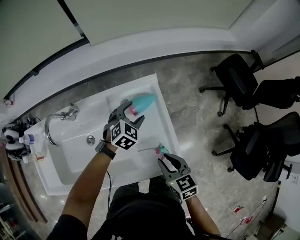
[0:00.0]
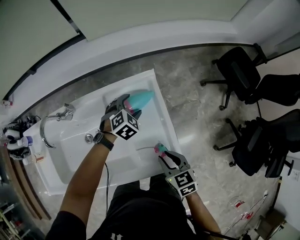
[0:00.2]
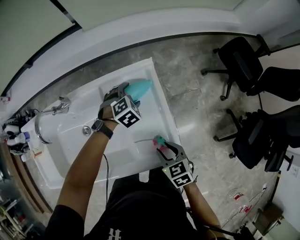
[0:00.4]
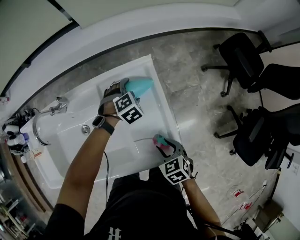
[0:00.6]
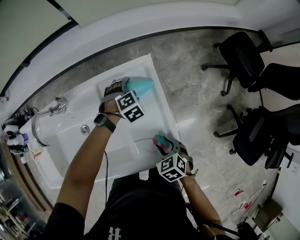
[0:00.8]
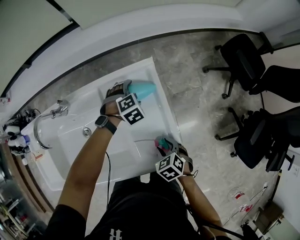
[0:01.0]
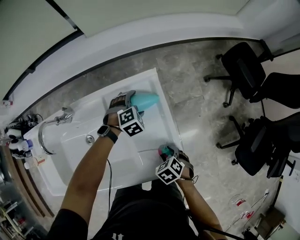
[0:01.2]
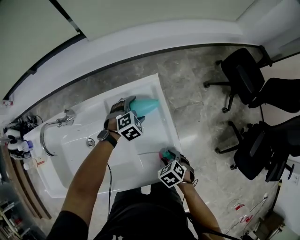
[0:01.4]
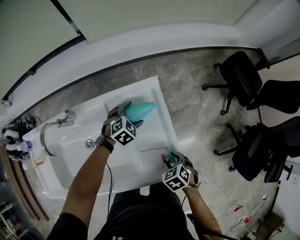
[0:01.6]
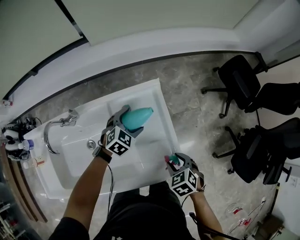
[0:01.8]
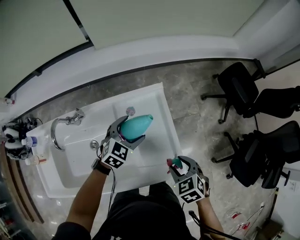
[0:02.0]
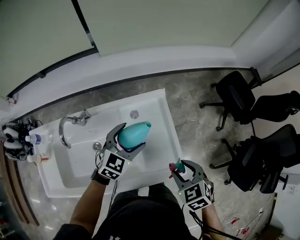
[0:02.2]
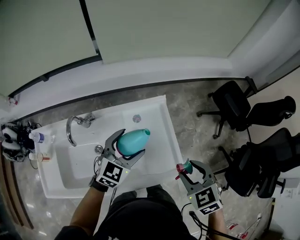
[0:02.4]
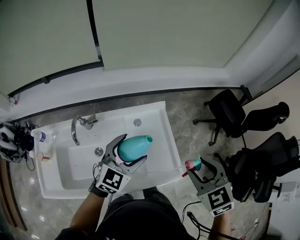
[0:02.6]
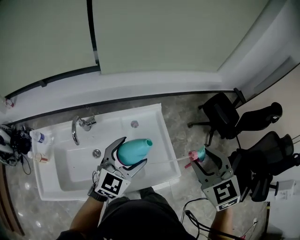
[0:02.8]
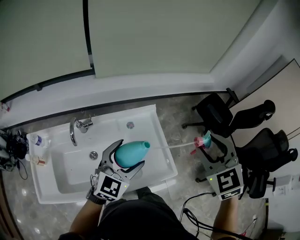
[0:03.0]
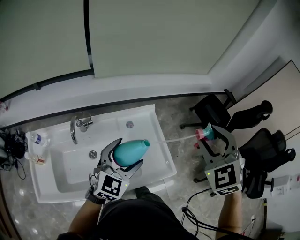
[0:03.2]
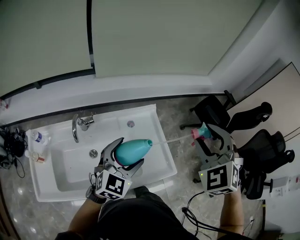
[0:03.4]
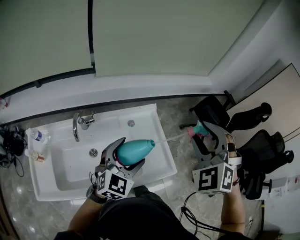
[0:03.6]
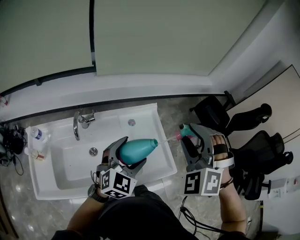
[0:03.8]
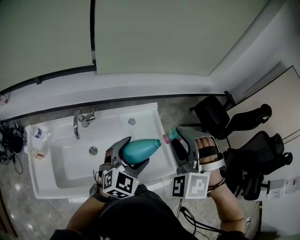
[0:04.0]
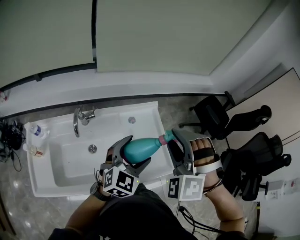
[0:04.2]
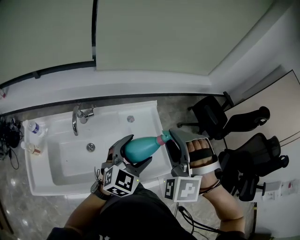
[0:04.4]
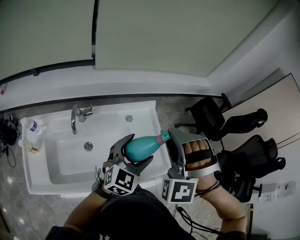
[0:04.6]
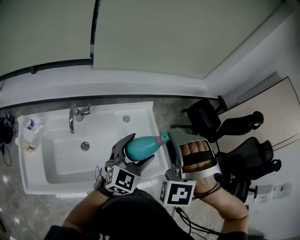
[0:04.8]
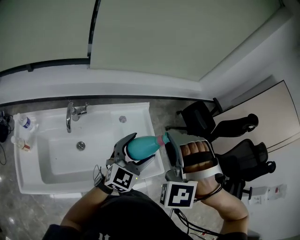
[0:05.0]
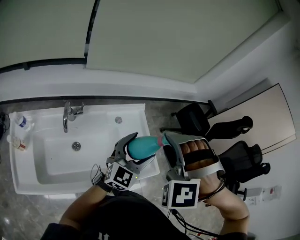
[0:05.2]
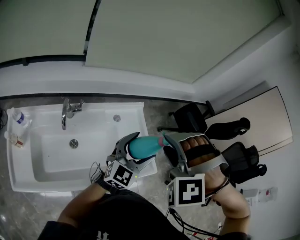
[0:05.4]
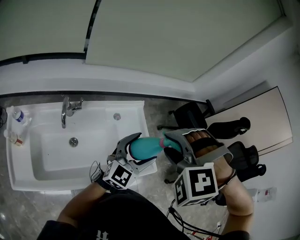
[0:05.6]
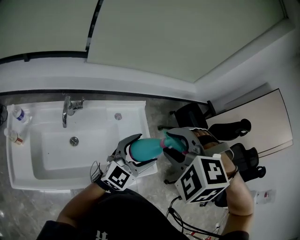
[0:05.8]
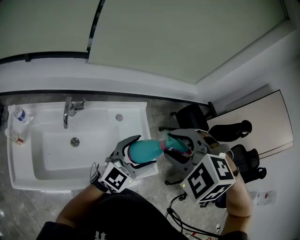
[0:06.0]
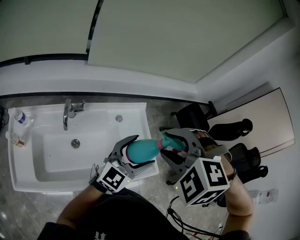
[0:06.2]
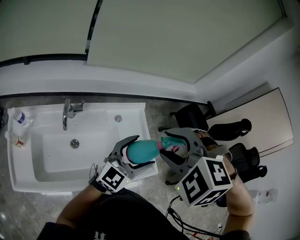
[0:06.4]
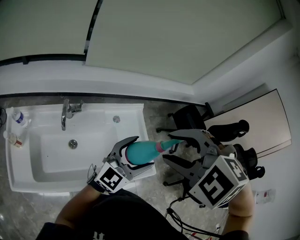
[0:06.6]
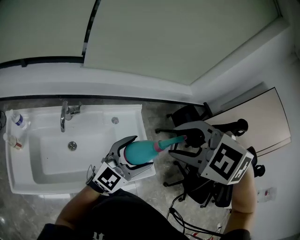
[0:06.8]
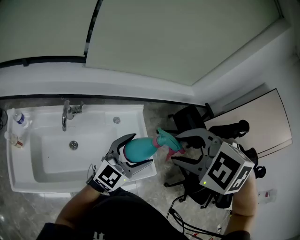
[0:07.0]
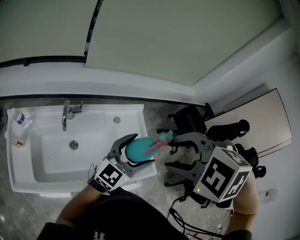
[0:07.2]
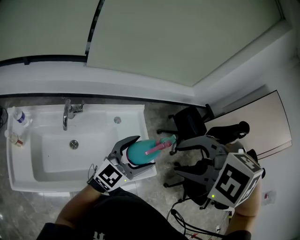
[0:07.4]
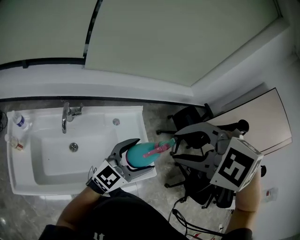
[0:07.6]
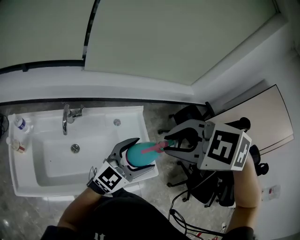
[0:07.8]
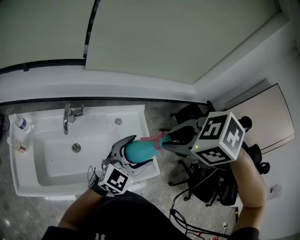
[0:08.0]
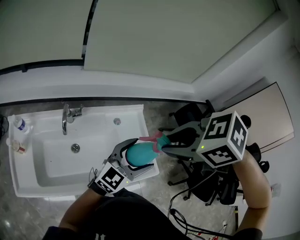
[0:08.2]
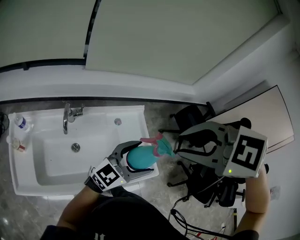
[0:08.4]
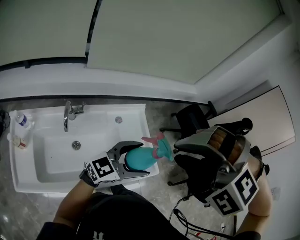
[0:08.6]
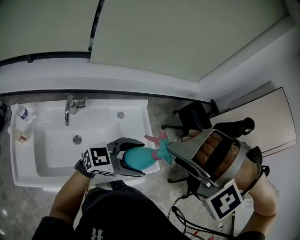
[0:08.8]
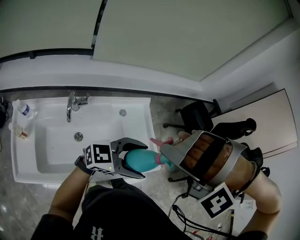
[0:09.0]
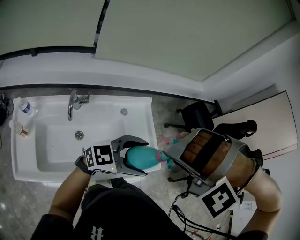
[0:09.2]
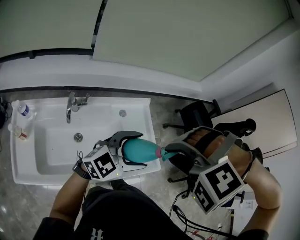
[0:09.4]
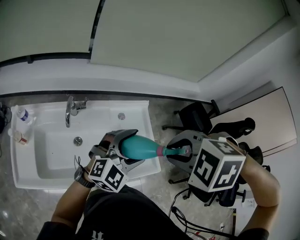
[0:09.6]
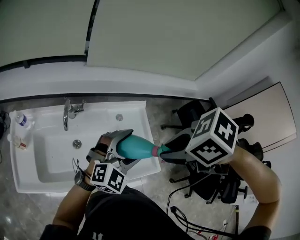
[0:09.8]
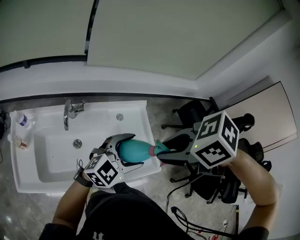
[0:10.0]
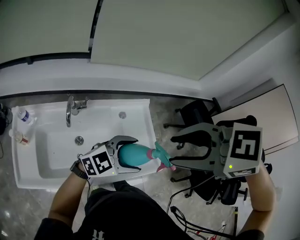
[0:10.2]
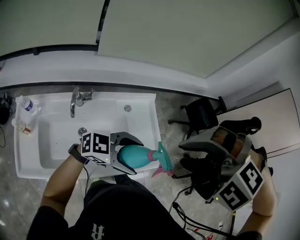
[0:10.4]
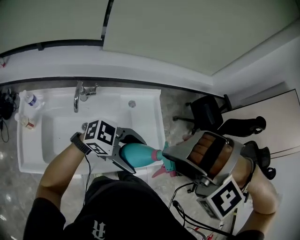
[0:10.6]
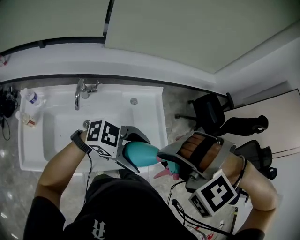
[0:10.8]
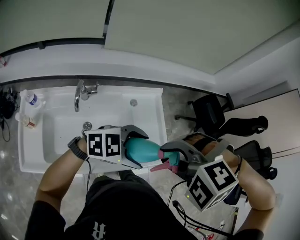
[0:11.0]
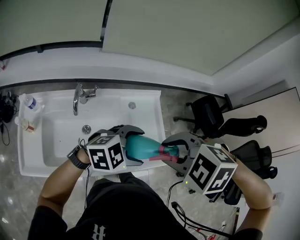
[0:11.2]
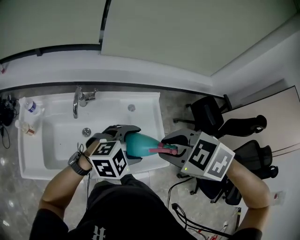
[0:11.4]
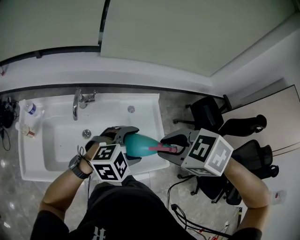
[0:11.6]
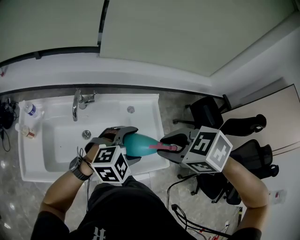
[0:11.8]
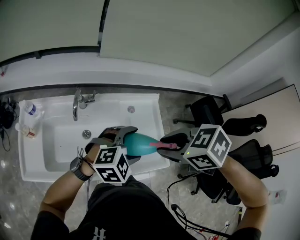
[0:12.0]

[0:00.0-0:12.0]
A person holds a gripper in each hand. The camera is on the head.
0:00.0 to 0:01.6: The two grippers go approximately 10 cm downward. The right gripper angles its fingers downward, by about 30 degrees, and opens.
0:01.6 to 0:03.0: The left gripper heads upward and backward, covering about 40 cm, and tilts its fingers approximately 40 degrees upward. Meanwhile the right gripper is displaced upward by roughly 50 cm, and tips its fingers upward by some 40 degrees.
0:03.0 to 0:04.4: The right gripper travels to the left by approximately 15 cm, and twists roughly 50 degrees counterclockwise, seen from behind.
0:04.4 to 0:06.0: The right gripper shifts by approximately 5 cm, and tips its fingers downward by some 30 degrees; the left gripper turns by some 30 degrees.
0:06.0 to 0:07.6: The right gripper shifts roughly 5 cm upward.
0:07.6 to 0:09.0: The left gripper ends up some 5 cm from where it was, and changes its angle by roughly 40 degrees. The right gripper goes up and down, about 5 cm each way, reversing 2 times, rotates around the line of its fingers by roughly 60 degrees, counterclockwise from behind, and closes, then reopens.
0:09.0 to 0:10.4: The right gripper swivels roughly 40 degrees.
0:10.4 to 0:12.0: The left gripper moves about 10 cm, and rotates approximately 50 degrees. Meanwhile the right gripper travels downward by approximately 10 cm, and rotates around the line of its fingers by approximately 60 degrees, clockwise from behind.

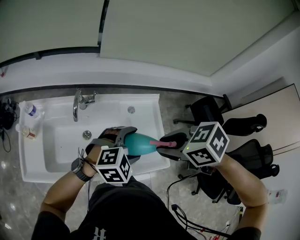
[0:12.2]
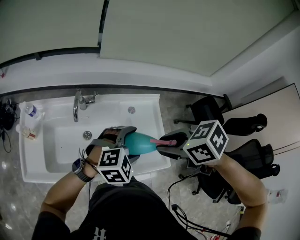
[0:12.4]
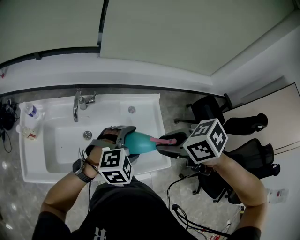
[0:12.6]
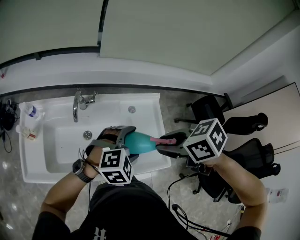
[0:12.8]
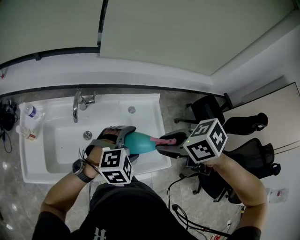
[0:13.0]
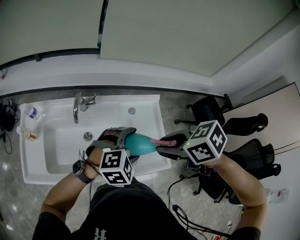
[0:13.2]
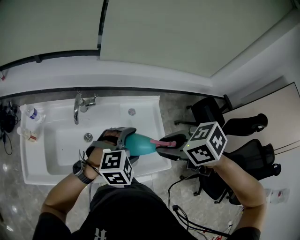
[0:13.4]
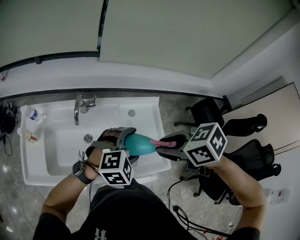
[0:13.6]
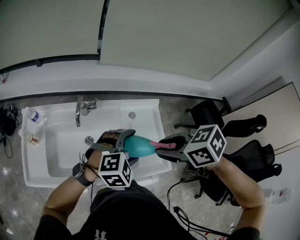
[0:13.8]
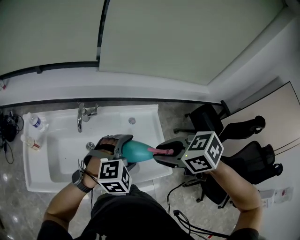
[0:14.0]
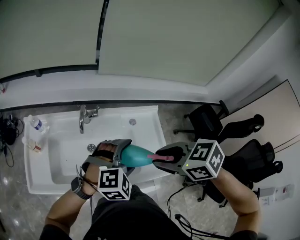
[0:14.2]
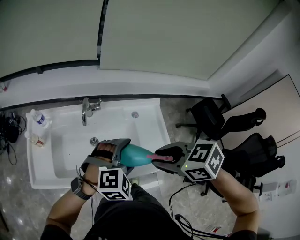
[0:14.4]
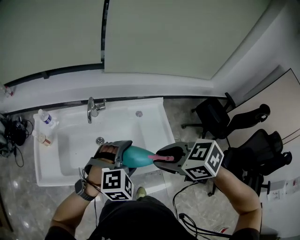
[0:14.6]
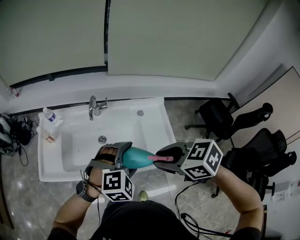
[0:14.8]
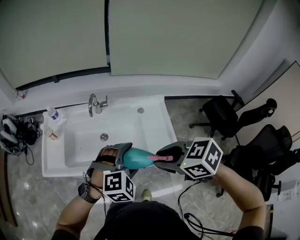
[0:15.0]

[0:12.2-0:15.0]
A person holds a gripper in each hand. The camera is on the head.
0:12.2 to 0:13.6: The grippers move only a little.
0:13.6 to 0:15.0: The left gripper shifts by about 15 cm; the right gripper shifts by approximately 20 cm.

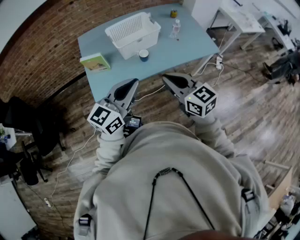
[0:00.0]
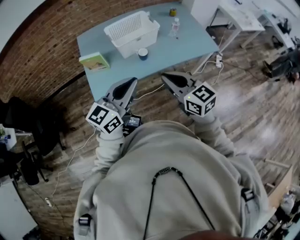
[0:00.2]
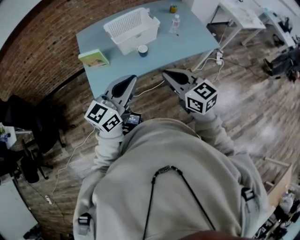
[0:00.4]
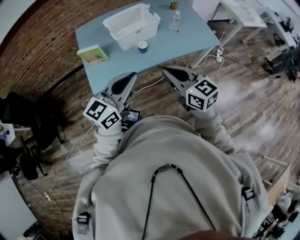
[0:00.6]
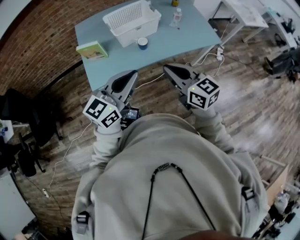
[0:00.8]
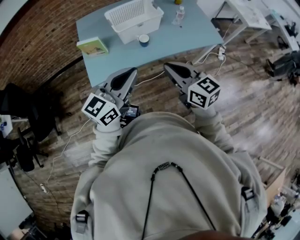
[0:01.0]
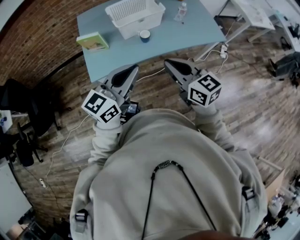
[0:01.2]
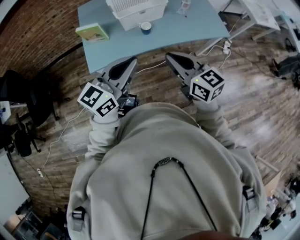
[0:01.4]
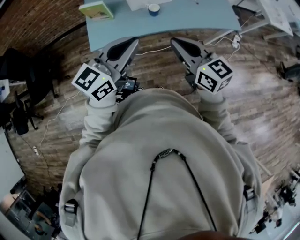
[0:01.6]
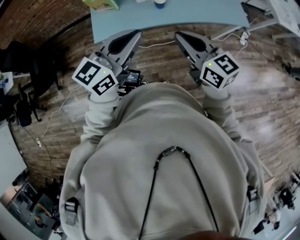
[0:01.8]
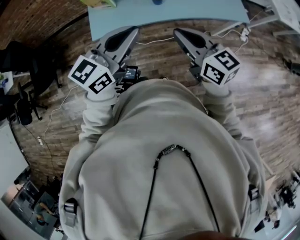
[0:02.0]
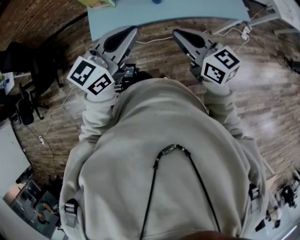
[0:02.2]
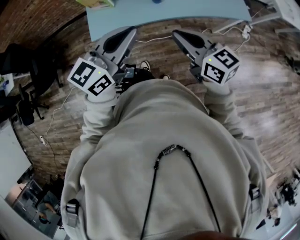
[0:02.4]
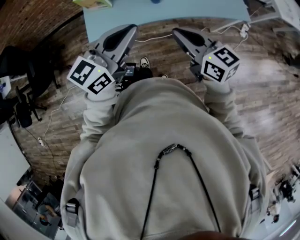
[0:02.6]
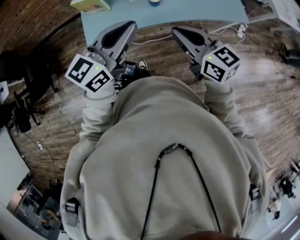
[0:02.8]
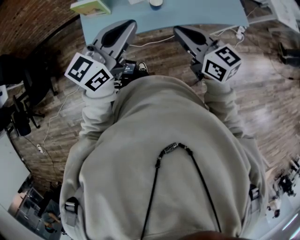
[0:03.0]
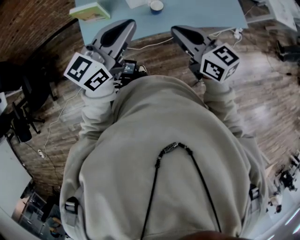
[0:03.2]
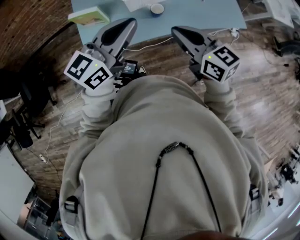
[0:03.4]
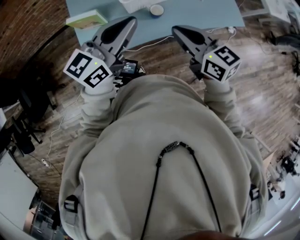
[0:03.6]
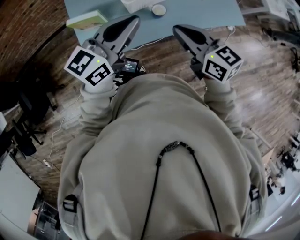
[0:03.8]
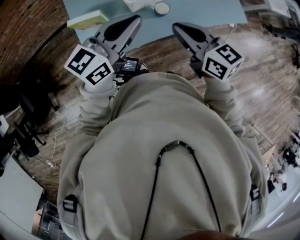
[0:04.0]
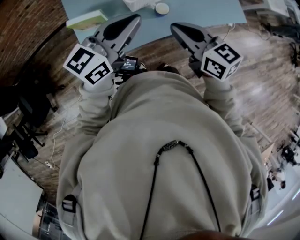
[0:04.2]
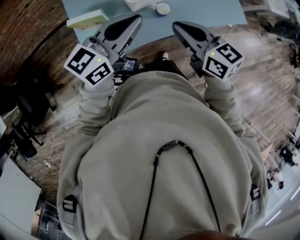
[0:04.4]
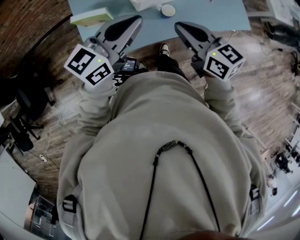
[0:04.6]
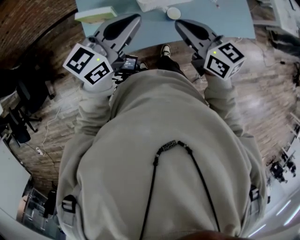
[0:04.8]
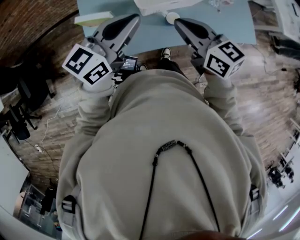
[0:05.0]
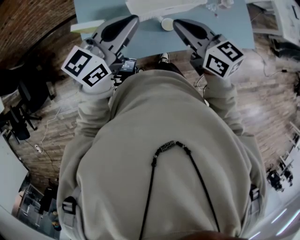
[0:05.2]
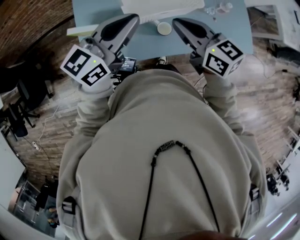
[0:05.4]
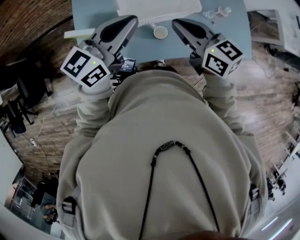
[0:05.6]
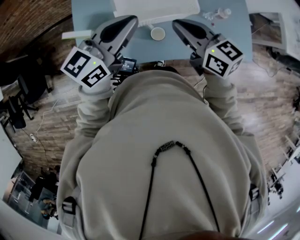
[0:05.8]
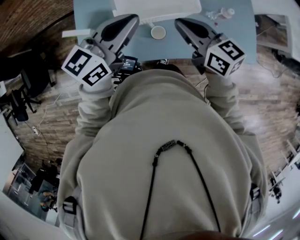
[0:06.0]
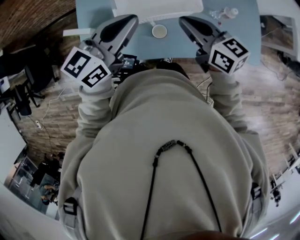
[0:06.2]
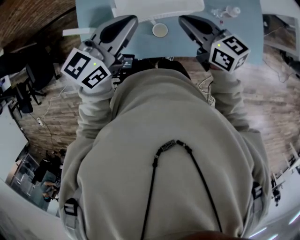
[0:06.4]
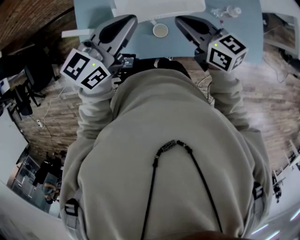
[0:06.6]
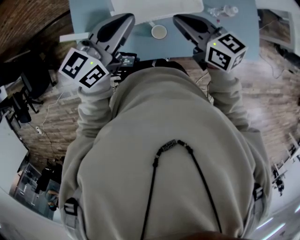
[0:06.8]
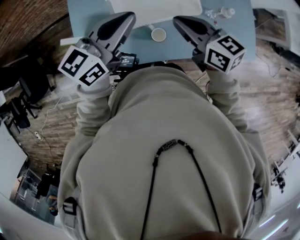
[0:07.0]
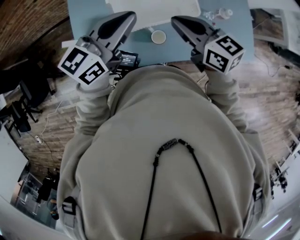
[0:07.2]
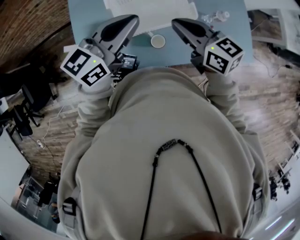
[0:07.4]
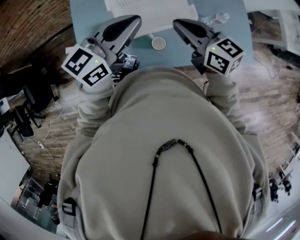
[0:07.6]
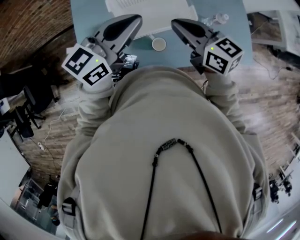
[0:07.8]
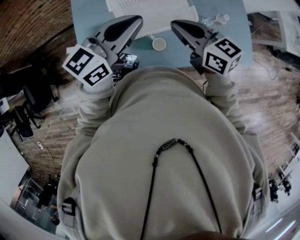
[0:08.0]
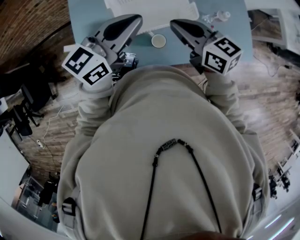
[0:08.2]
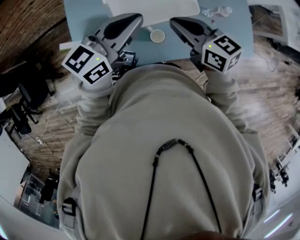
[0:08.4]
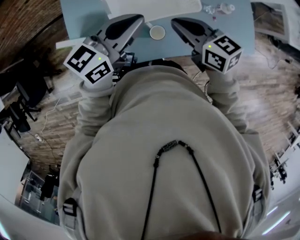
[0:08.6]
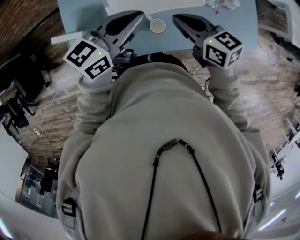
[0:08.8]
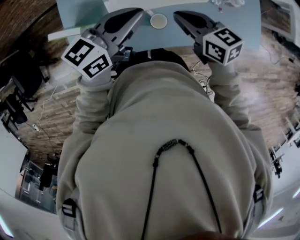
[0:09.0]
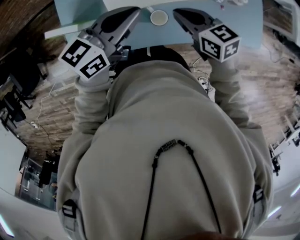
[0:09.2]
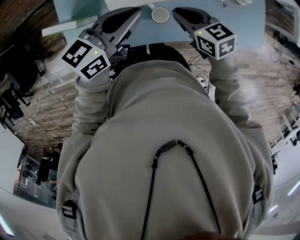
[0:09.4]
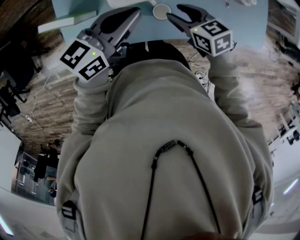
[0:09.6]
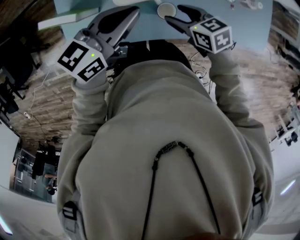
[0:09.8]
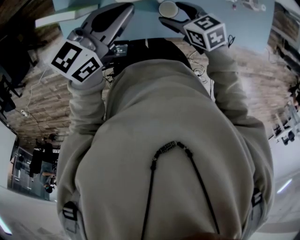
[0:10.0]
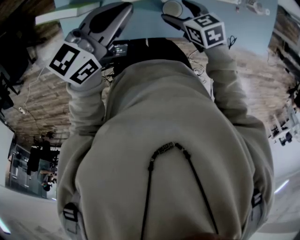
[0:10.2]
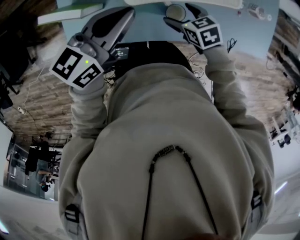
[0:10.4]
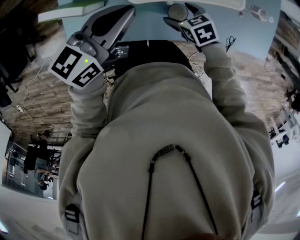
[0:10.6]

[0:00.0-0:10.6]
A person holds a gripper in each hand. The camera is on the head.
0:00.0 to 0:01.6: The grippers stay close to where they were, moving slightly.
0:01.6 to 0:03.0: The two grippers go approximately 10 cm forward.
0:03.0 to 0:04.6: The two grippers go some 20 cm forward and to the left.
0:04.6 to 0:06.0: The two grippers go approximately 15 cm forward and to the right.
0:06.0 to 0:07.6: The grippers make only small movements.
0:07.6 to 0:09.0: The two grippers go some 10 cm downward.
0:09.0 to 0:10.6: The left gripper shifts approximately 10 cm to the left and downward. Meanwhile the right gripper travels downward by some 20 cm, angles its fingers downward, by some 30 degrees, and opens.
